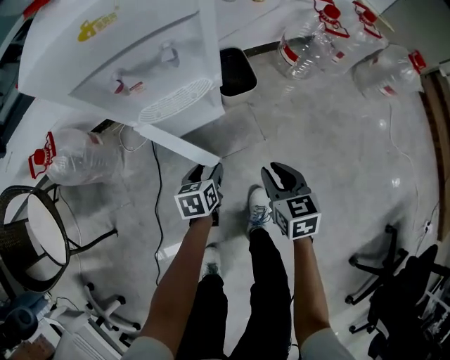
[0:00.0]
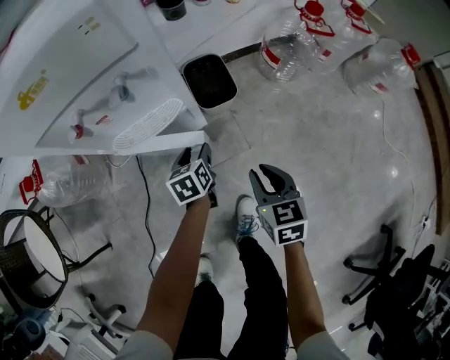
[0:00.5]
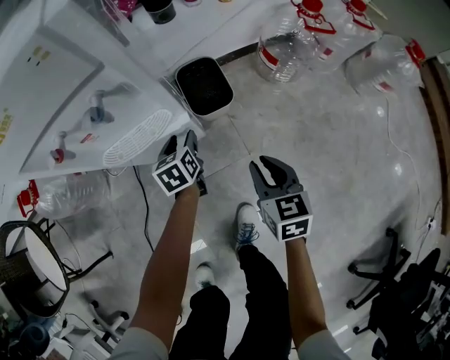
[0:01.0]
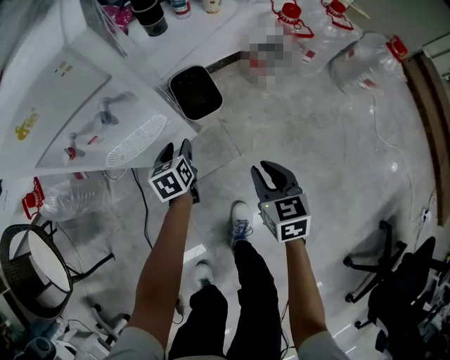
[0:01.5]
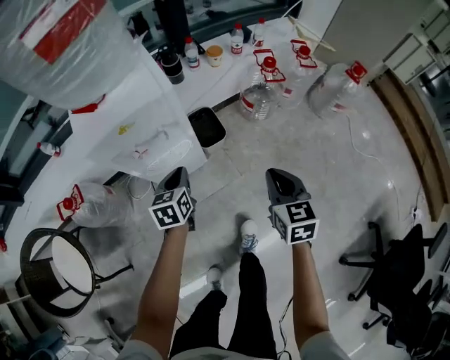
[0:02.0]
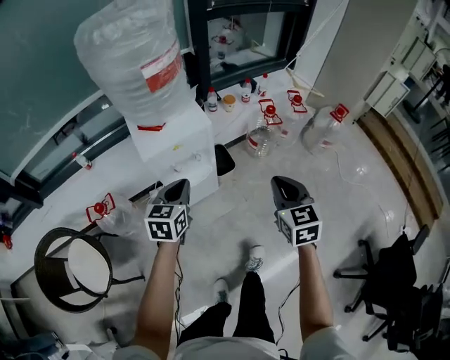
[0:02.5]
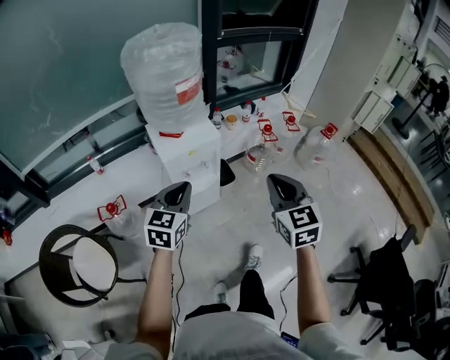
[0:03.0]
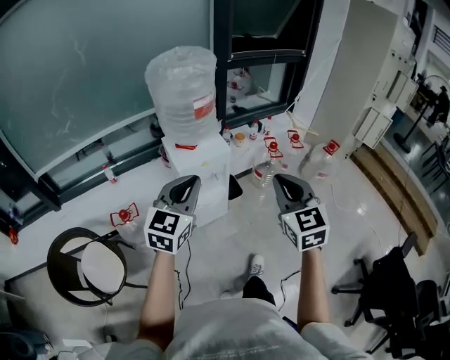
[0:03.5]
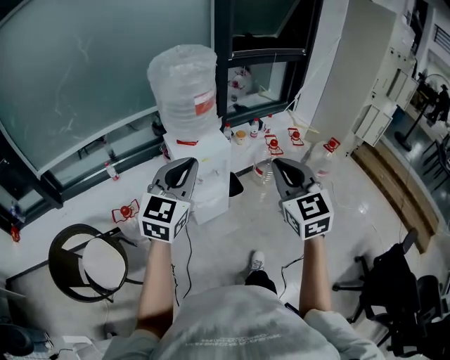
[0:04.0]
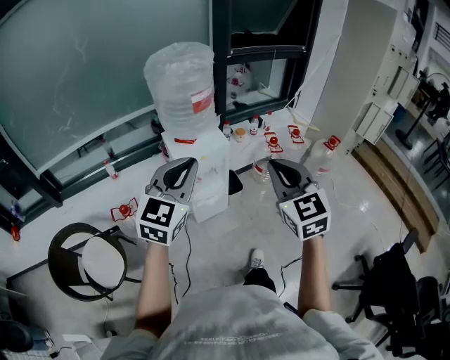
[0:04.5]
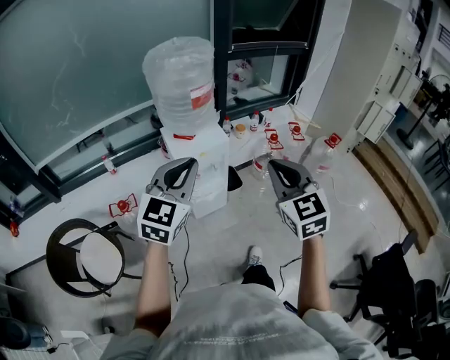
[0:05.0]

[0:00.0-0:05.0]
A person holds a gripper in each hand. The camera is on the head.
0:00.0 to 0:02.5: The two grippers go approximately 50 cm upward. The right gripper changes its angle by roughly 20 degrees, and closes up, while the left gripper swivels roughly 40 degrees, and closes up.
0:02.5 to 0:05.0: Both grippers travel together upward and backward, about 30 cm. The left gripper changes its angle by roughly 30 degrees. Meanwhile the right gripper rotates some 20 degrees.

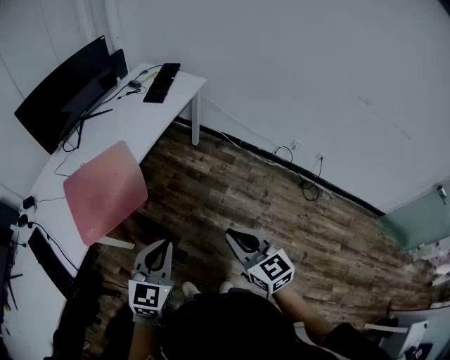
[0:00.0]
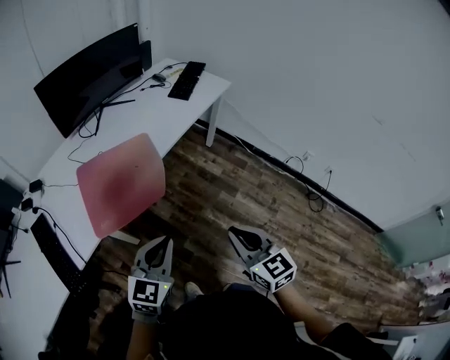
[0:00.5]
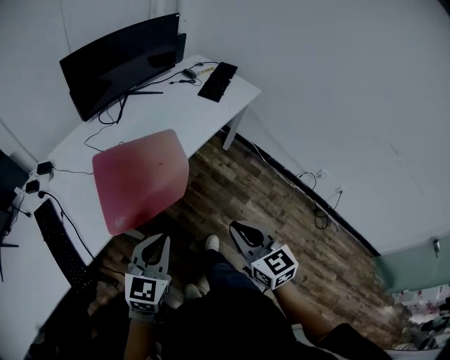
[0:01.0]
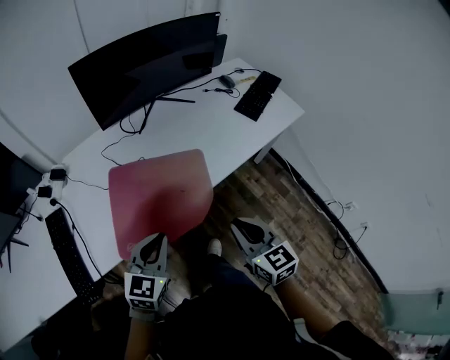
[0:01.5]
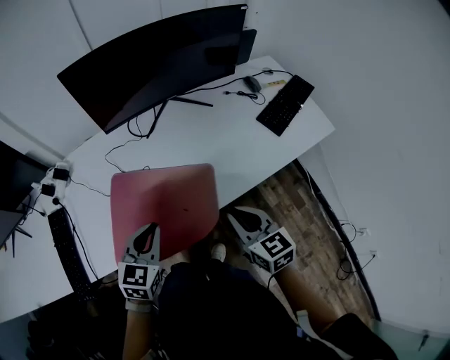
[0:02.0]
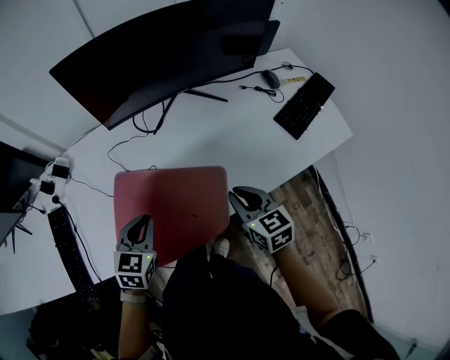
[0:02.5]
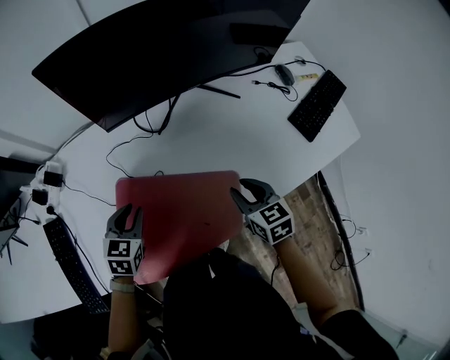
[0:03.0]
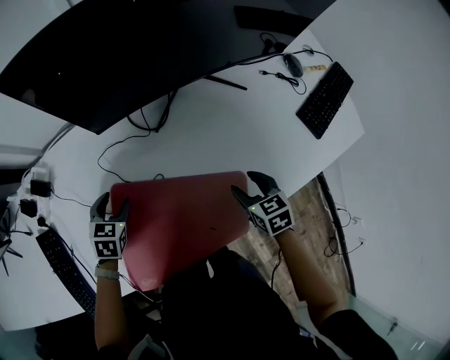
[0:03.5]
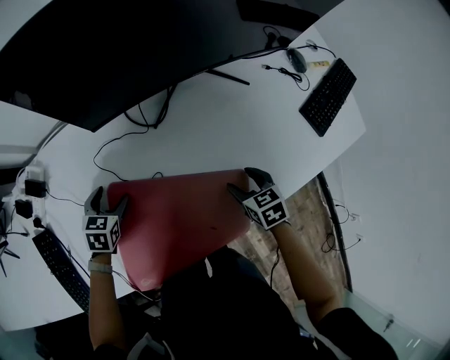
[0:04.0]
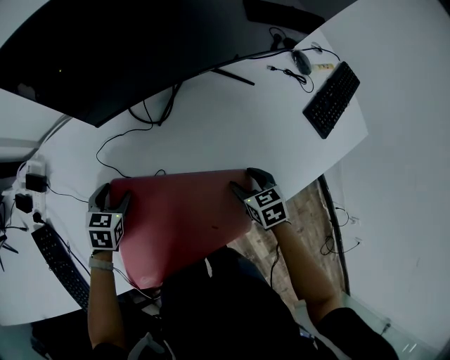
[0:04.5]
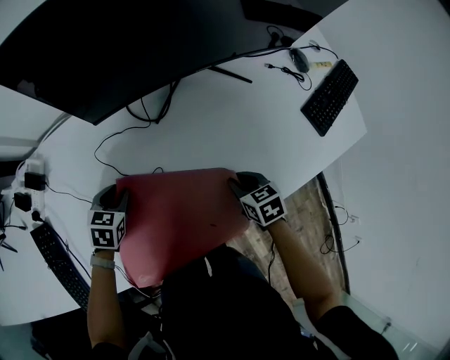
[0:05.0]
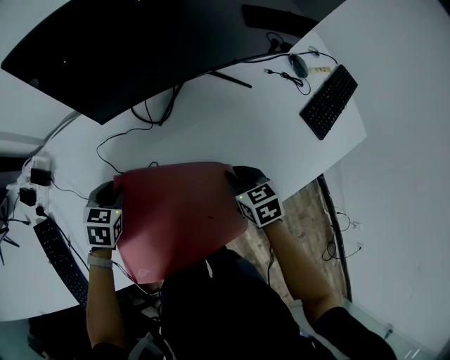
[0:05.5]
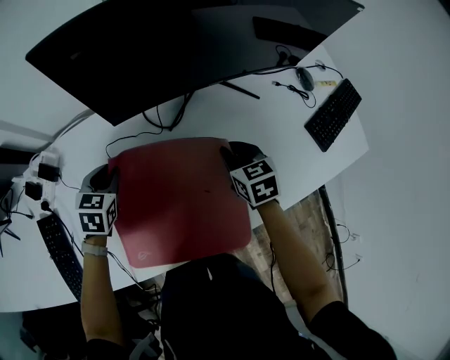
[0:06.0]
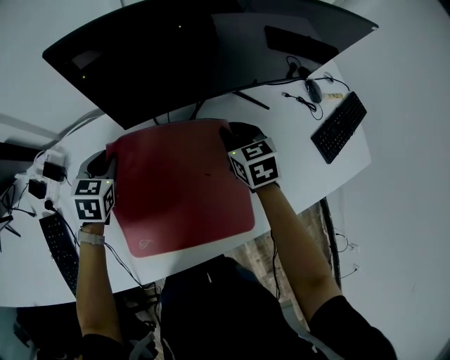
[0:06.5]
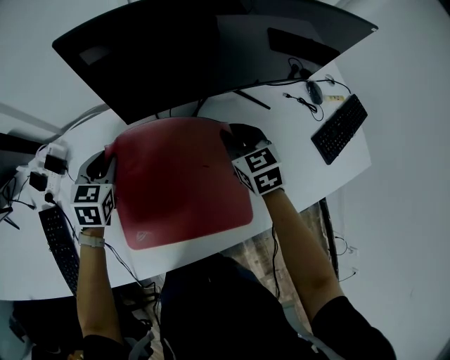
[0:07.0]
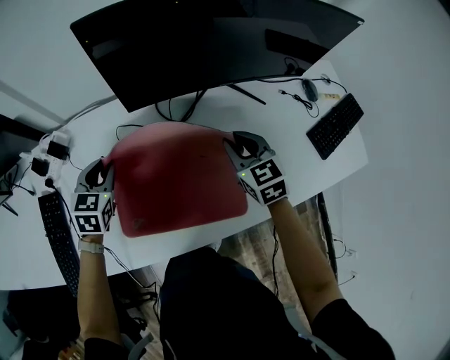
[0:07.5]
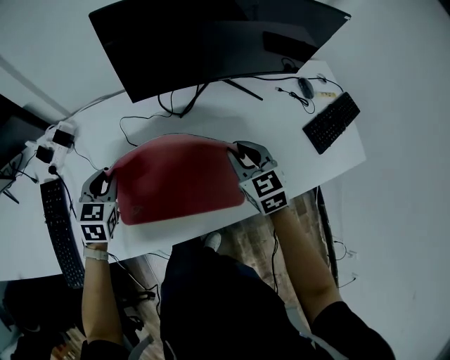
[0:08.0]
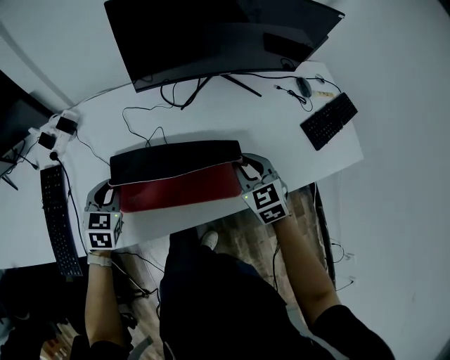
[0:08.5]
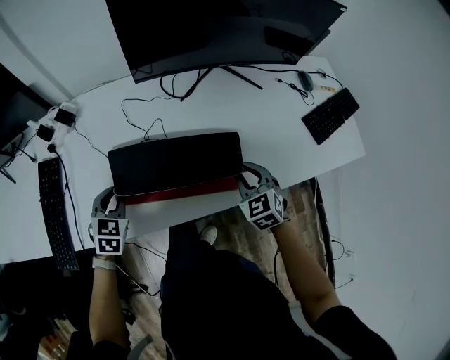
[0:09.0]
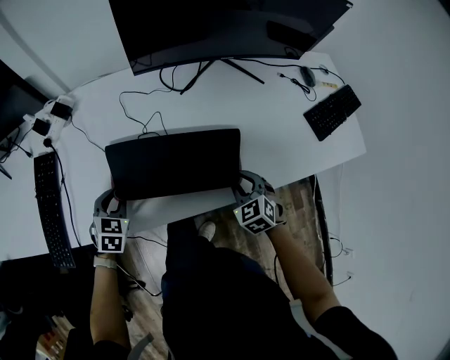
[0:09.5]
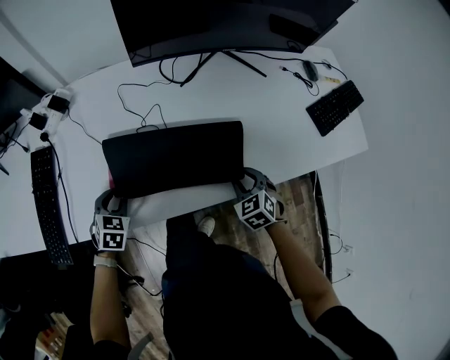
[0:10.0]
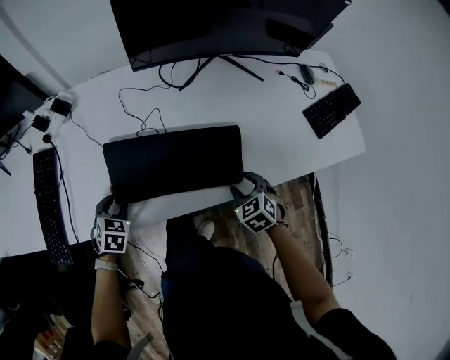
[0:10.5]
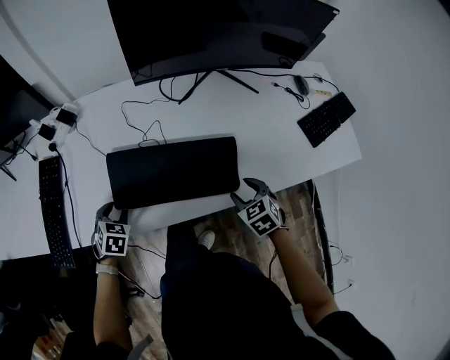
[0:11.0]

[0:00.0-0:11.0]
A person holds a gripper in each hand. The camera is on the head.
0:00.0 to 0:02.0: Both grippers are carried approximately 50 cm. The left gripper swivels some 40 degrees. The right gripper changes its angle by roughly 30 degrees.
0:02.0 to 0:03.5: The right gripper goes approximately 30 cm forward and downward, changes its angle by about 30 degrees, and opens its fingers. Meanwhile the left gripper is displaced forward, downward and to the left by some 35 cm, changes its angle by approximately 30 degrees, and opens.
0:03.5 to 0:05.5: The right gripper closes up. Meanwhile the left gripper closes up.
0:05.5 to 0:07.5: The left gripper heads upward, covering about 10 cm, goes forward and returns, about 10 cm each way, and turns by roughly 20 degrees, while the right gripper travels upward and forward by approximately 15 cm, and changes its angle by some 30 degrees.
0:07.5 to 0:09.0: Both grippers travel together backward, approximately 20 cm.
0:09.0 to 0:11.0: The right gripper shifts approximately 5 cm backward, and opens up; the left gripper shifts about 10 cm downward and backward.

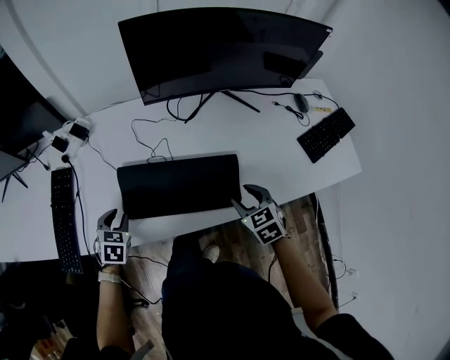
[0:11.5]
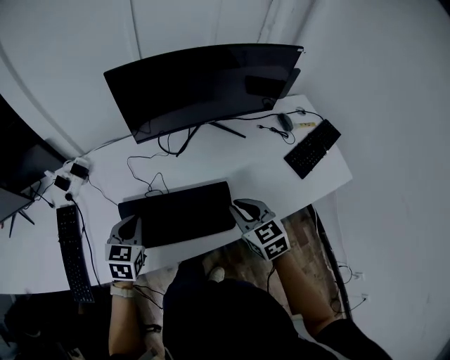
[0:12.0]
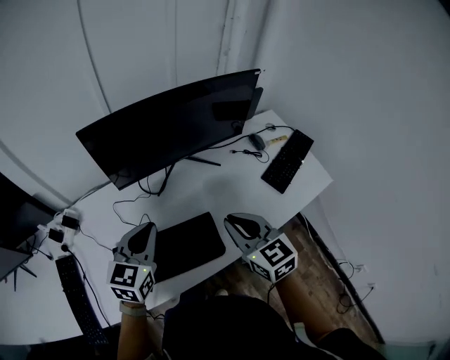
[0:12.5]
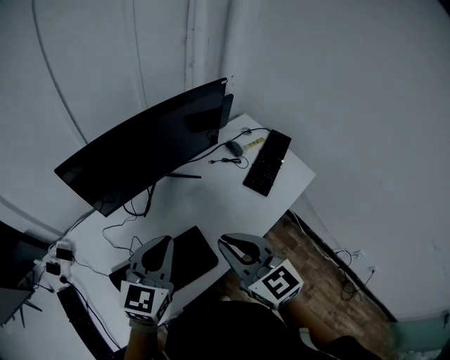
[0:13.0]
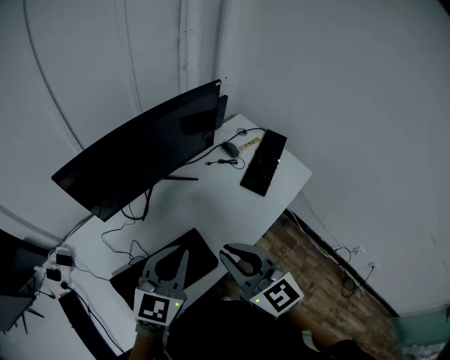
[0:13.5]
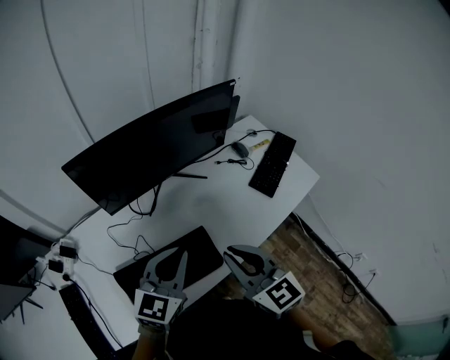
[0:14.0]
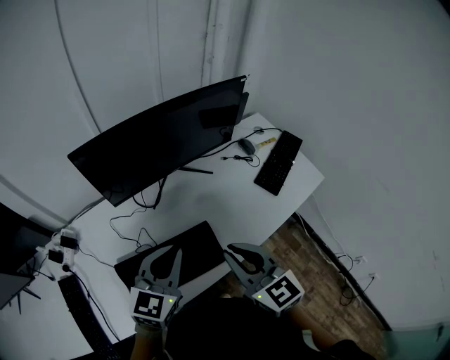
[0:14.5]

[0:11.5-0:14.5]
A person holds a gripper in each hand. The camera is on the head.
0:11.5 to 0:13.0: The grippers both shift upward by roughly 30 cm. The right gripper tips its fingers upward by roughly 30 degrees, and closes up. The left gripper angles its fingers upward, by approximately 40 degrees, and closes its fingers.
0:13.0 to 0:14.5: The grippers move only a little.

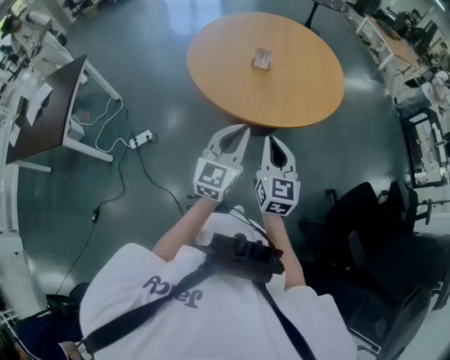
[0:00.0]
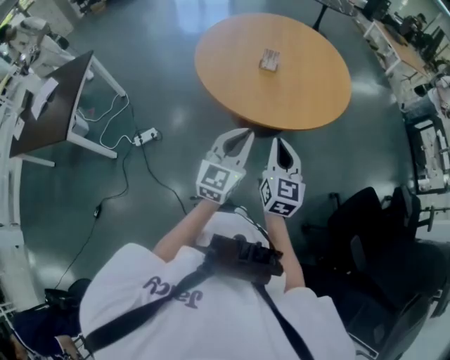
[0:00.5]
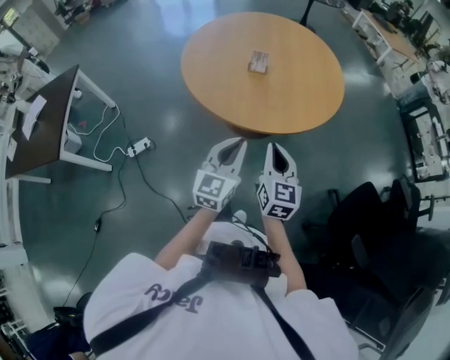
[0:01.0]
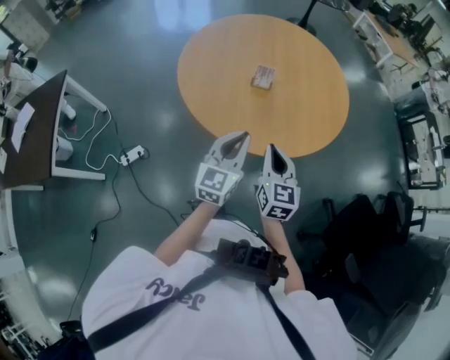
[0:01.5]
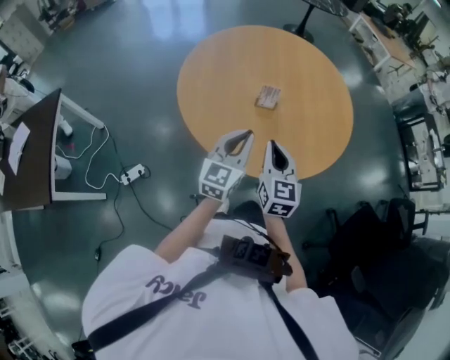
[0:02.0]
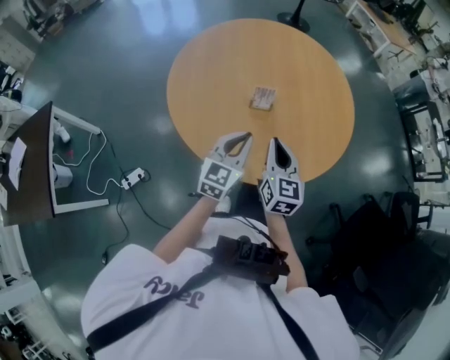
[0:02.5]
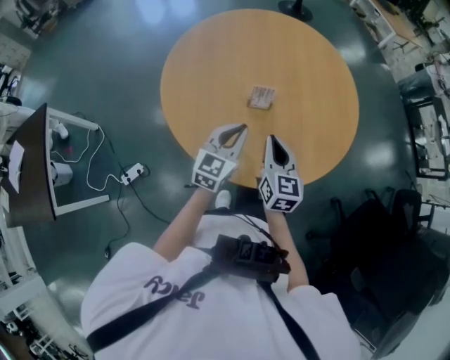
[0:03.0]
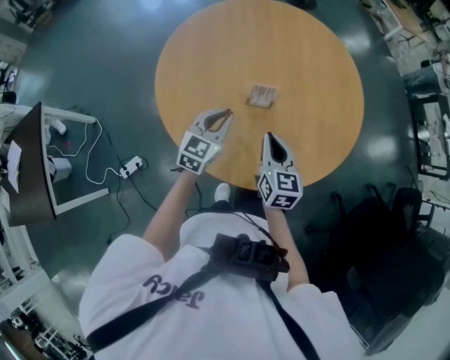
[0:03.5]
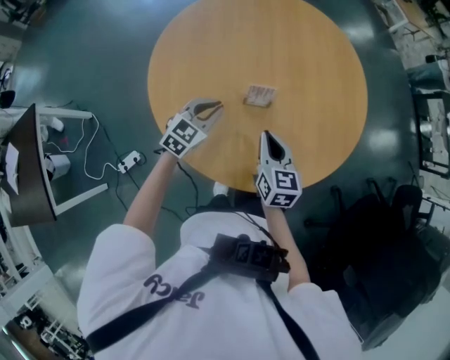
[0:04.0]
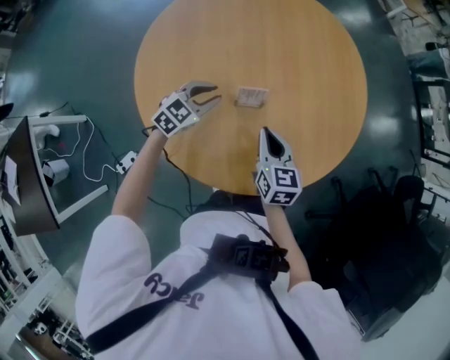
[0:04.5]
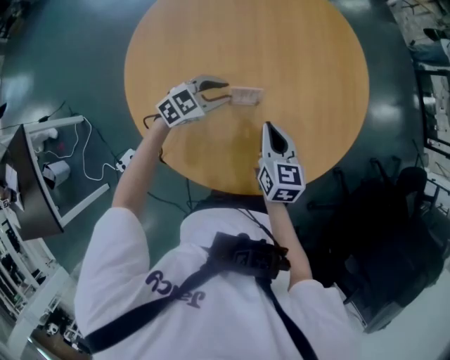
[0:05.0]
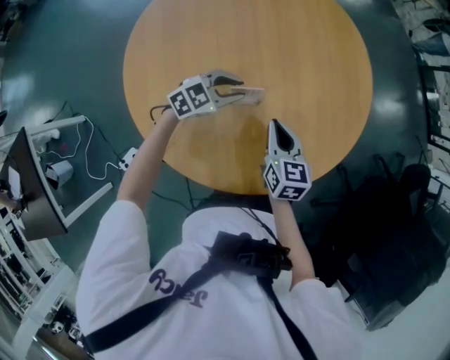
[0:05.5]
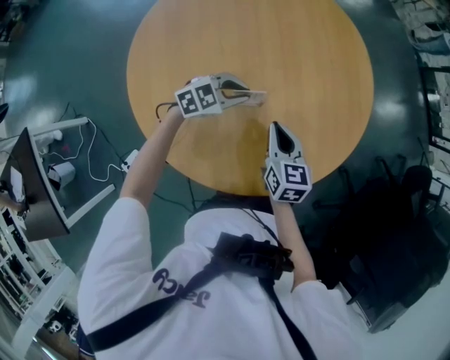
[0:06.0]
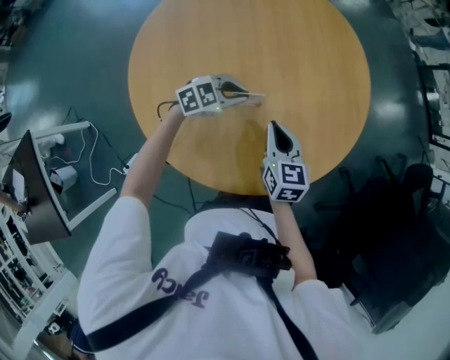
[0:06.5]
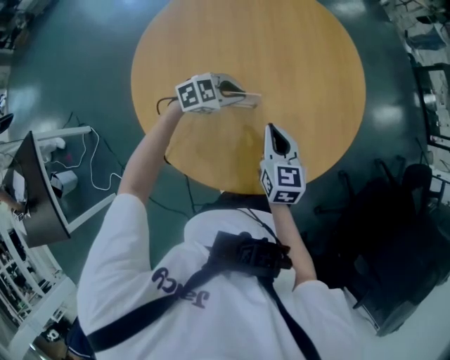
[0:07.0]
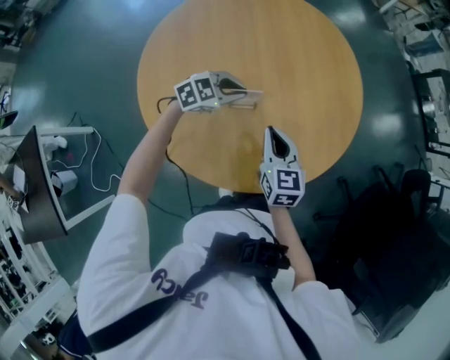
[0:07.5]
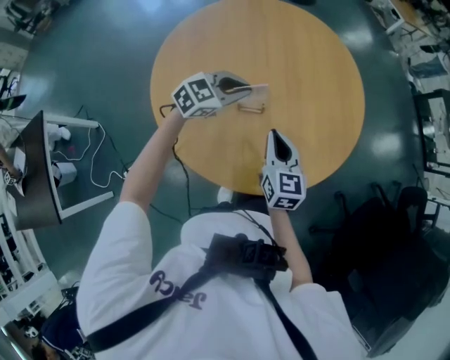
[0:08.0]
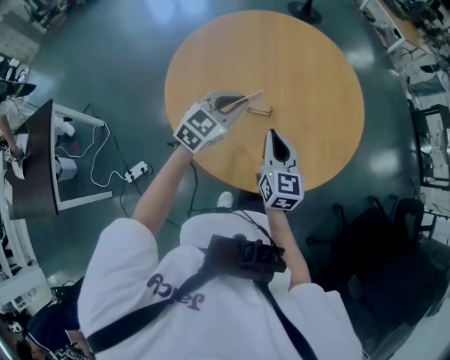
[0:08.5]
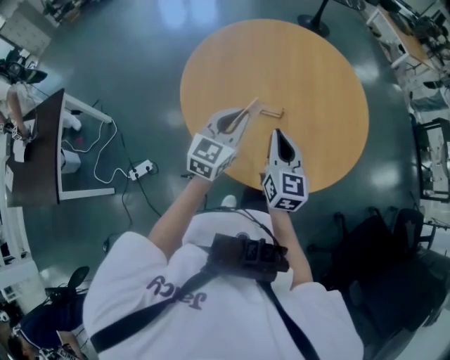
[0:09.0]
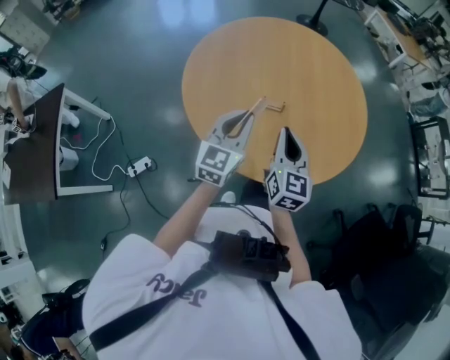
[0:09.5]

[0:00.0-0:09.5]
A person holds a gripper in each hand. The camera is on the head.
0:00.0 to 0:02.0: The two grippers go approximately 25 cm forward.
0:02.0 to 0:04.0: Both grippers travel together forward and downward, about 20 cm. The left gripper turns by roughly 30 degrees.
0:04.0 to 0:05.5: The right gripper moves forward, about 5 cm. The left gripper travels forward and to the right by about 10 cm, rotates approximately 30 degrees, and opens its fingers.
0:05.5 to 0:07.5: The left gripper closes its fingers; the right gripper moves roughly 5 cm.
0:07.5 to 0:09.5: The left gripper changes place by about 25 cm, and angles its fingers upward, by some 30 degrees. Meanwhile the right gripper shifts by roughly 15 cm.
